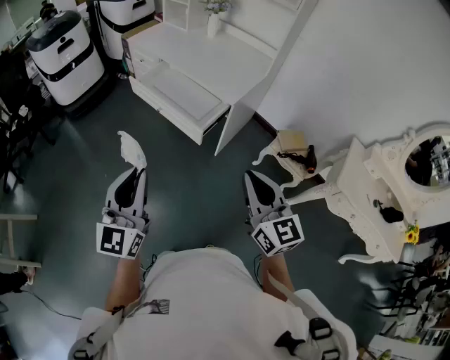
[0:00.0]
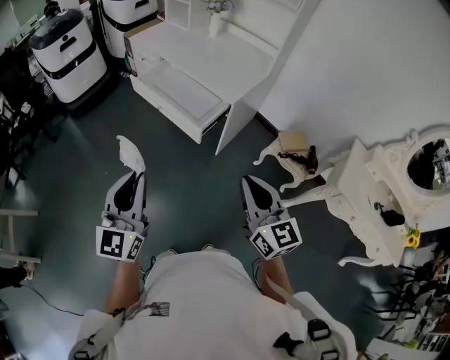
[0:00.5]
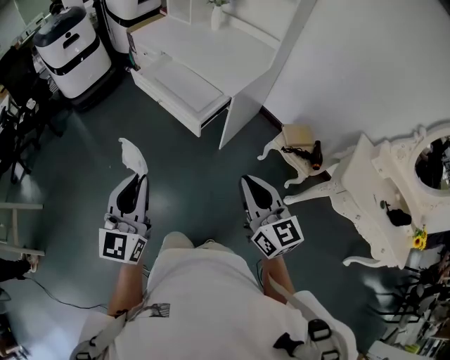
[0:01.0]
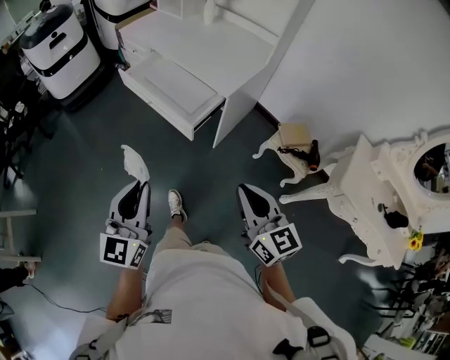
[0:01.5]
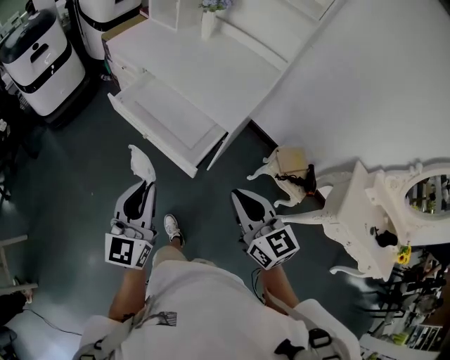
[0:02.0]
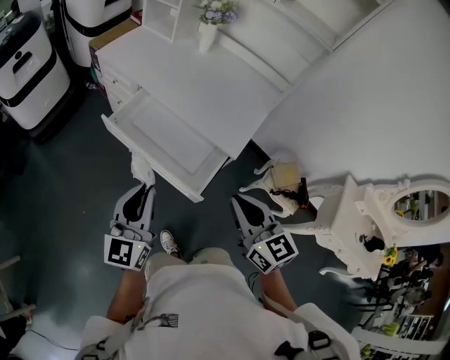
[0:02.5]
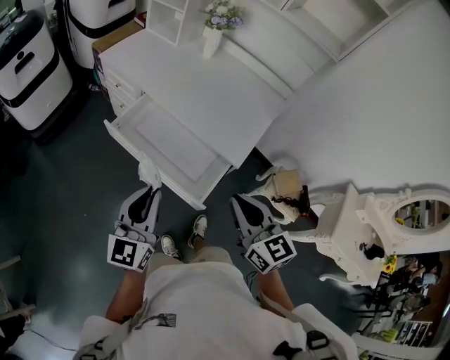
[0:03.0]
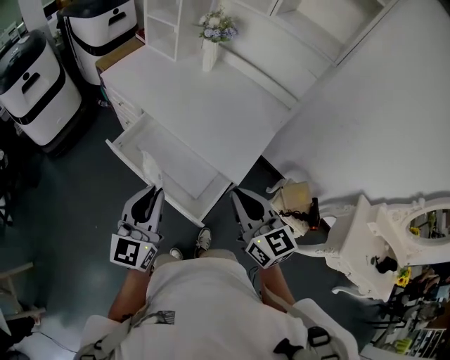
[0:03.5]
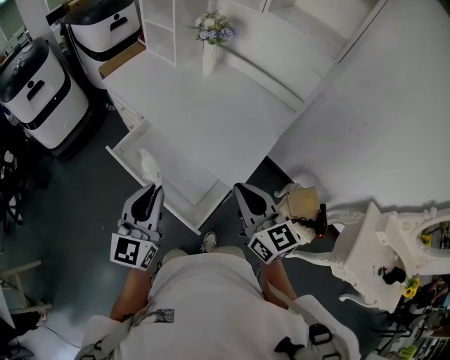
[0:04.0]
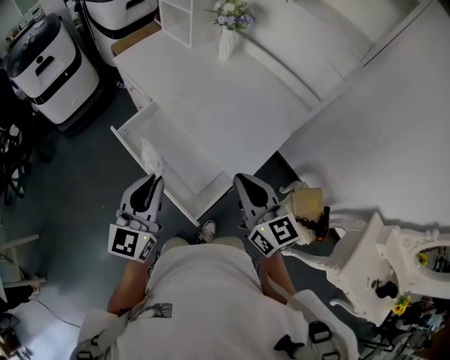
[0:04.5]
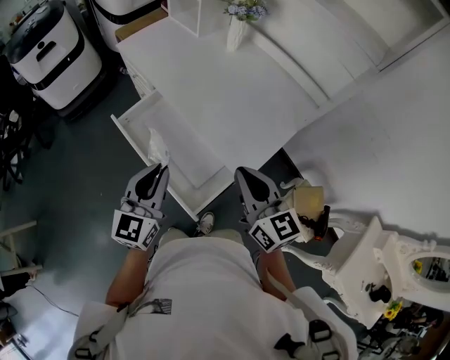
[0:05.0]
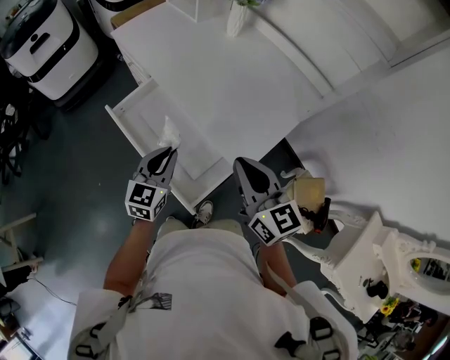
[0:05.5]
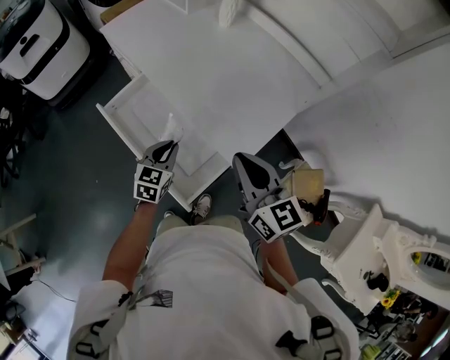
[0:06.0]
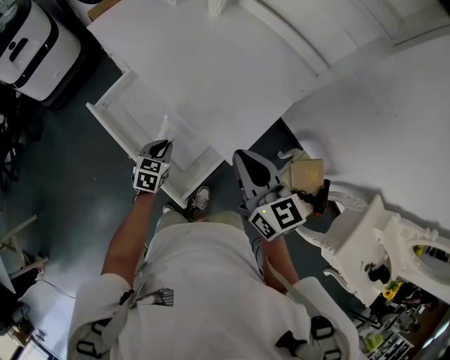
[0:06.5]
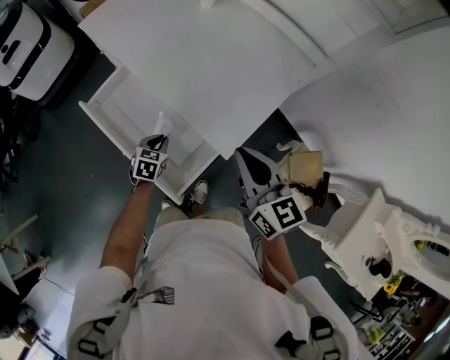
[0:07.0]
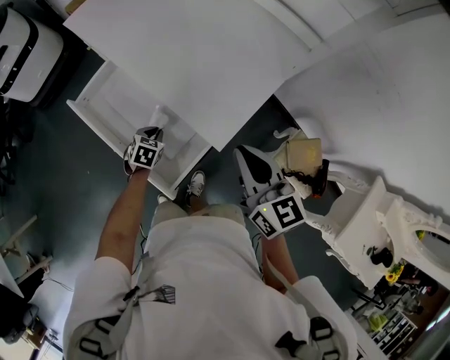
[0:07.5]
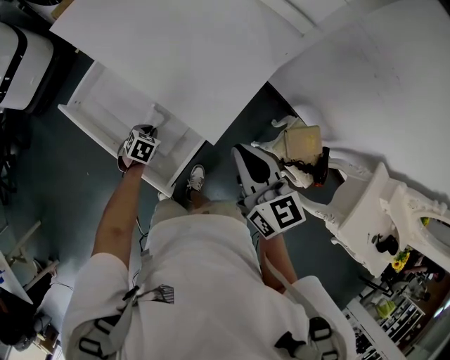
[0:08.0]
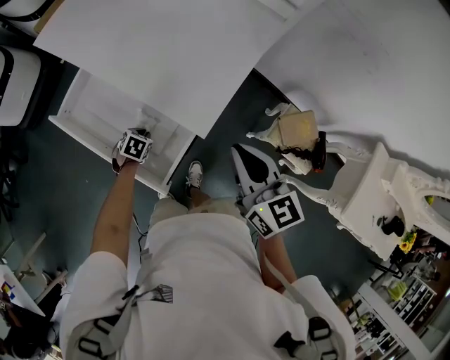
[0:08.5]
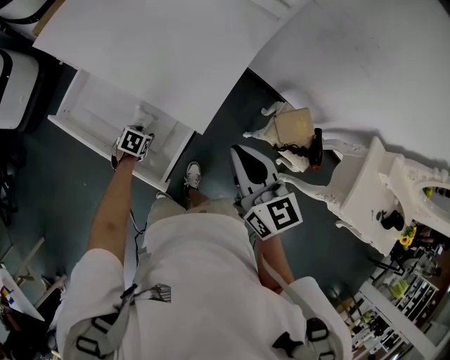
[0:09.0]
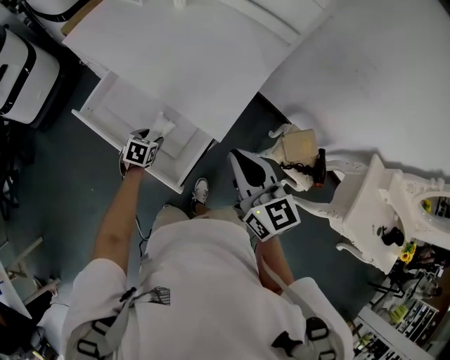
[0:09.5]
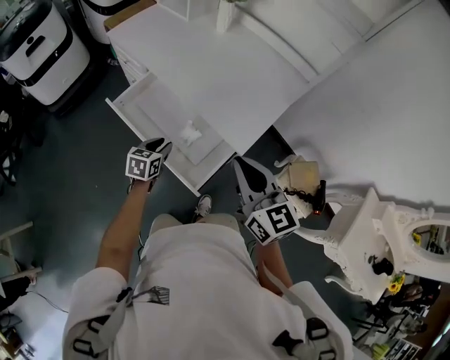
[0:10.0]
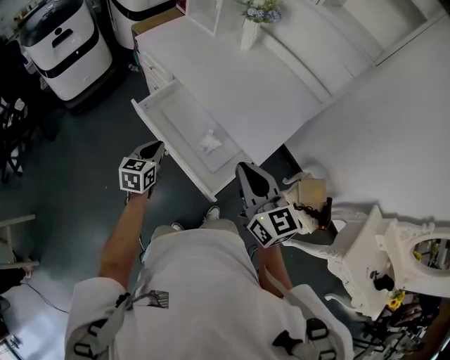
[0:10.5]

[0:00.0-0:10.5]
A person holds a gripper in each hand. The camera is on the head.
0:00.0 to 0:02.0: Both grippers move forward, roughly 20 cm.
0:02.0 to 0:04.0: Both grippers move forward, roughly 25 cm.
0:04.0 to 0:06.5: The right gripper travels forward and downward by about 10 cm, while the left gripper goes about 35 cm downward, and tilts its fingers about 50 degrees downward.
0:06.5 to 0:08.5: The left gripper shifts approximately 15 cm downward, and changes its angle by approximately 30 degrees. The right gripper moves to the right, some 10 cm.
0:08.5 to 0:10.5: The right gripper goes some 25 cm to the left, backward and upward, while the left gripper shifts roughly 30 cm upward and to the left, tips its fingers upward by approximately 50 degrees, and opens, then closes once more.

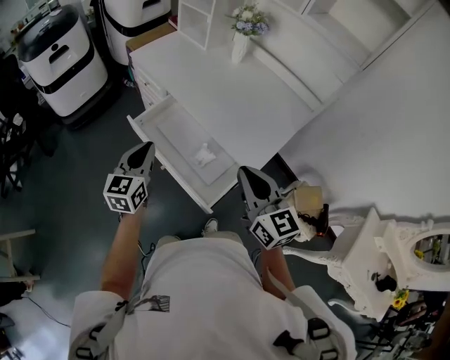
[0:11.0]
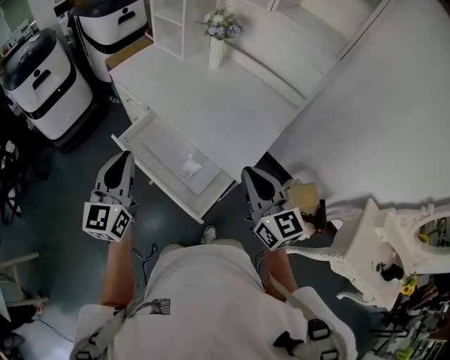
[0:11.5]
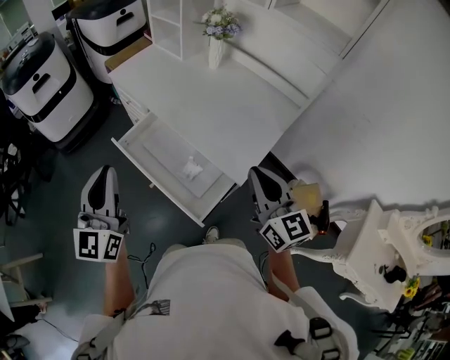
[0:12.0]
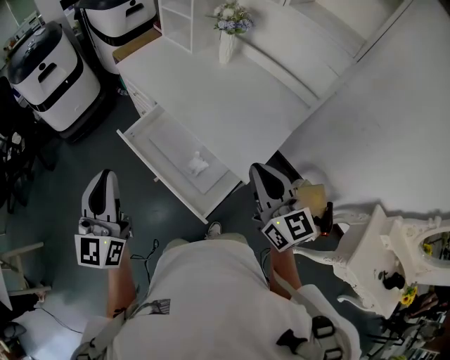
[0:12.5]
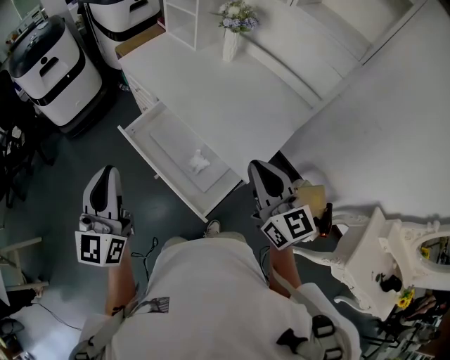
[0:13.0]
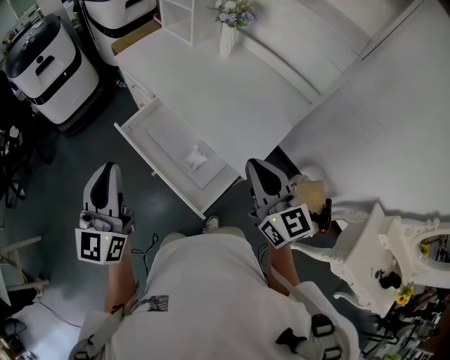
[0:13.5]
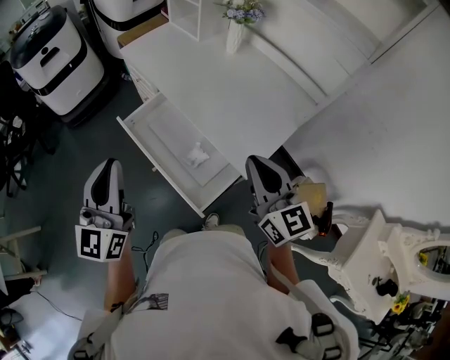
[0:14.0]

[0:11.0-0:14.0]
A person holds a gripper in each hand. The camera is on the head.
0:11.0 to 0:12.5: The right gripper heads to the right, covering approximately 10 cm. The left gripper goes about 15 cm upward, and rotates roughly 20 degrees.
0:12.5 to 0:14.0: The grippers stay close to where they were, moving slightly.

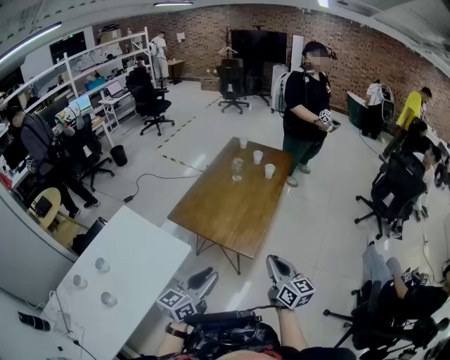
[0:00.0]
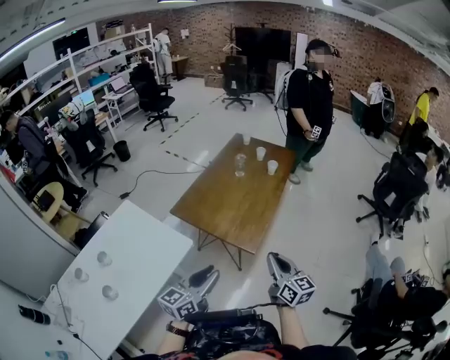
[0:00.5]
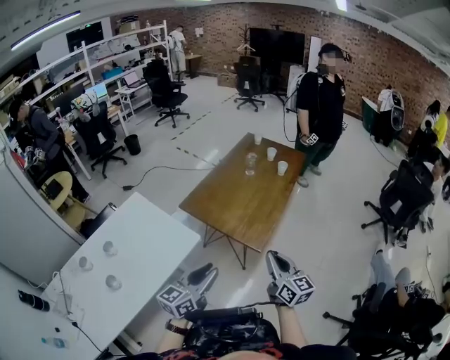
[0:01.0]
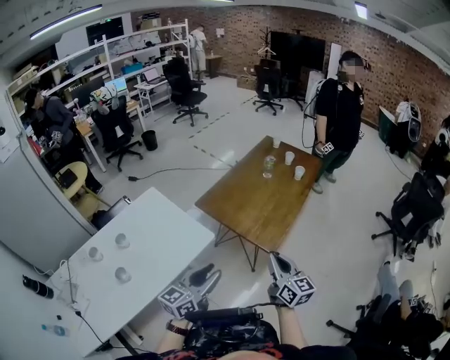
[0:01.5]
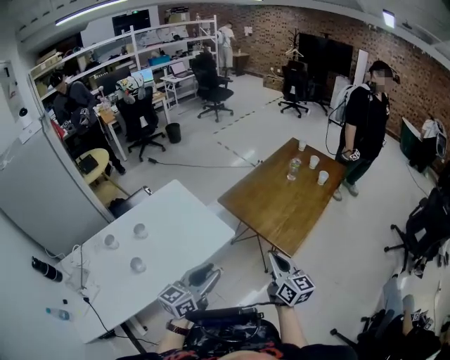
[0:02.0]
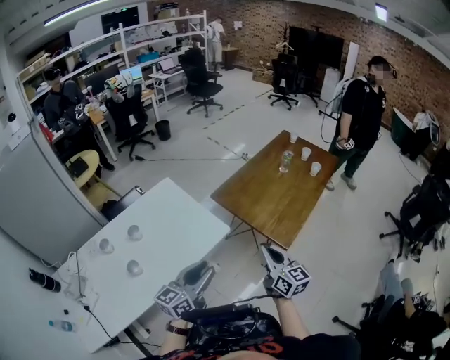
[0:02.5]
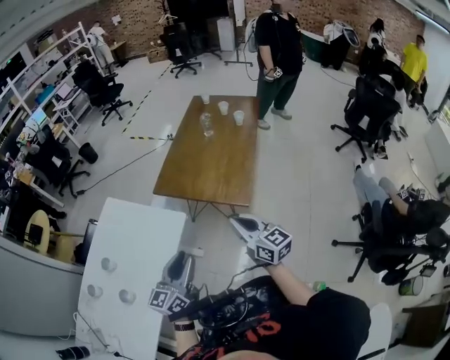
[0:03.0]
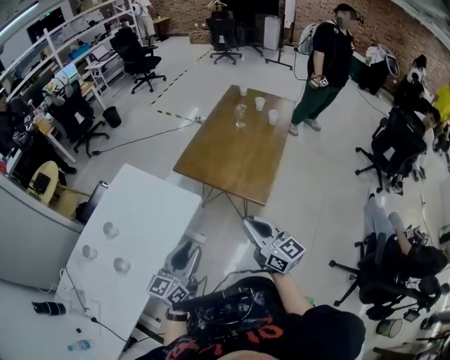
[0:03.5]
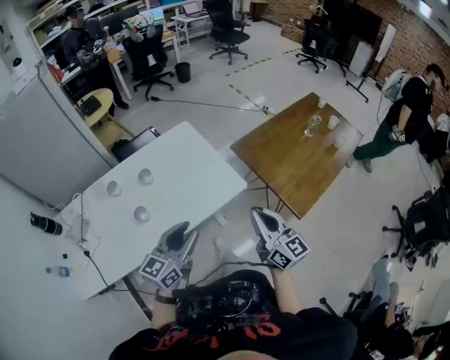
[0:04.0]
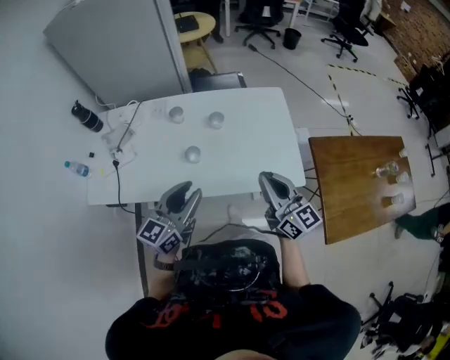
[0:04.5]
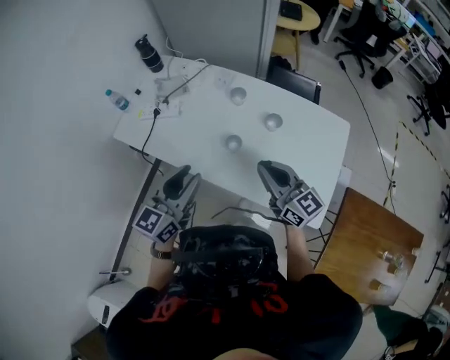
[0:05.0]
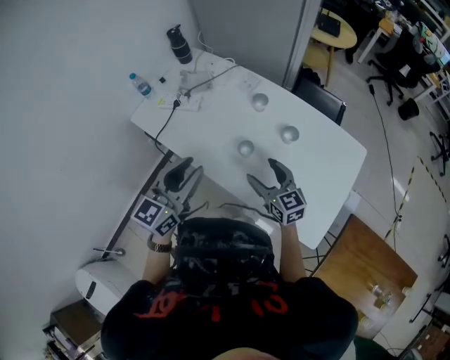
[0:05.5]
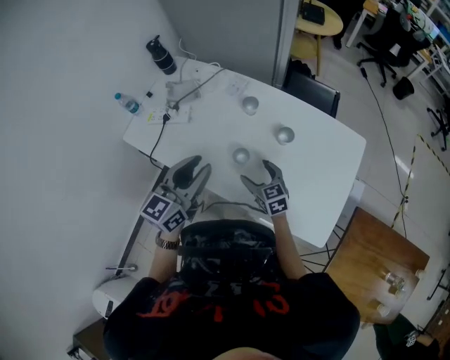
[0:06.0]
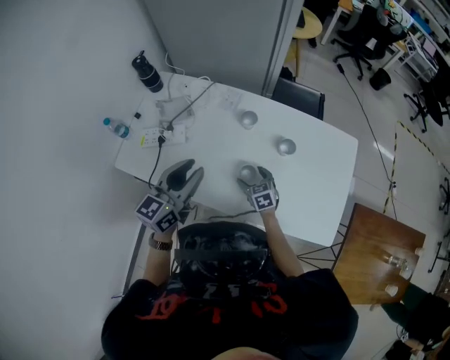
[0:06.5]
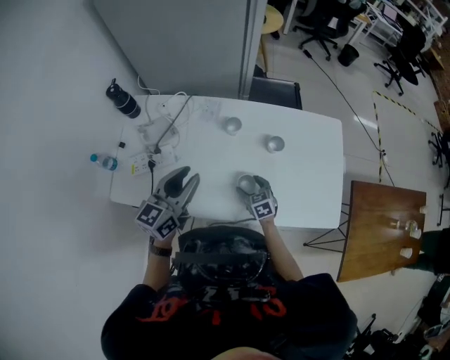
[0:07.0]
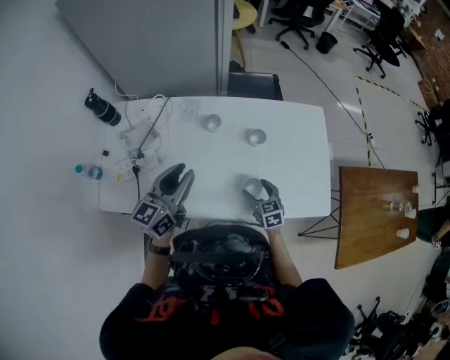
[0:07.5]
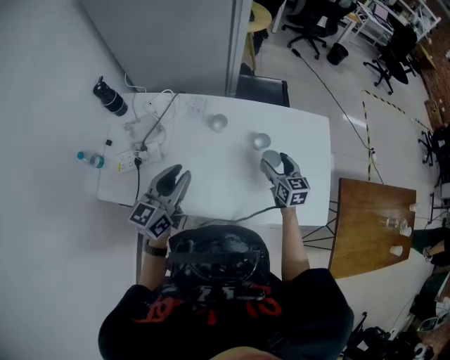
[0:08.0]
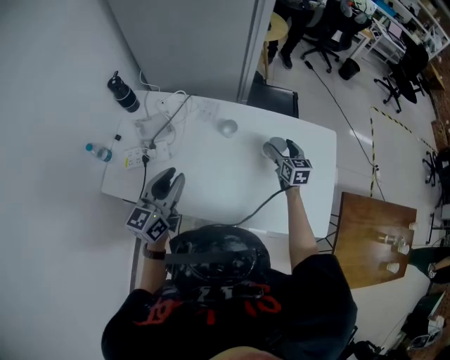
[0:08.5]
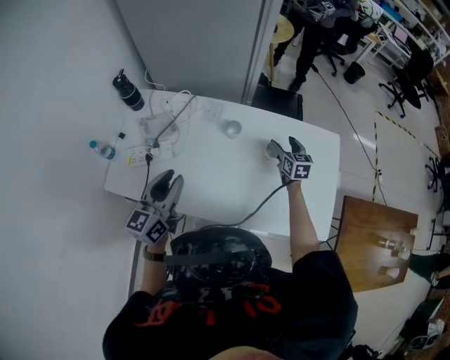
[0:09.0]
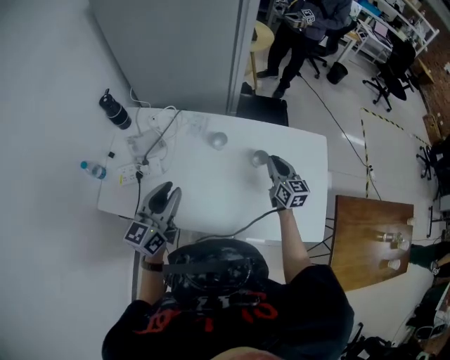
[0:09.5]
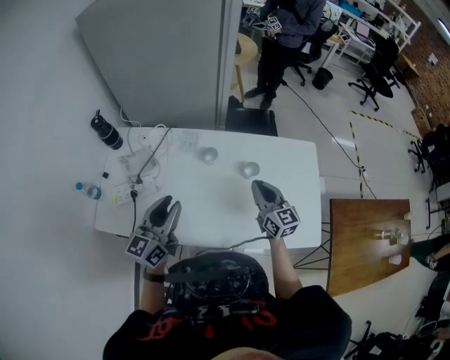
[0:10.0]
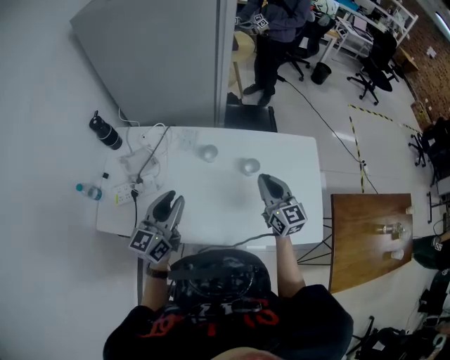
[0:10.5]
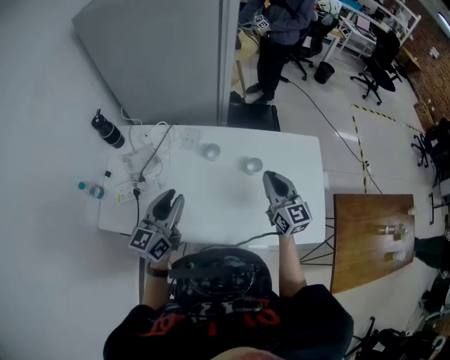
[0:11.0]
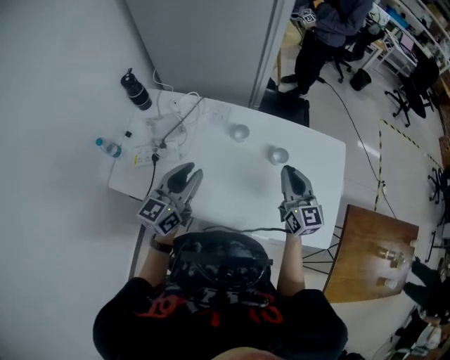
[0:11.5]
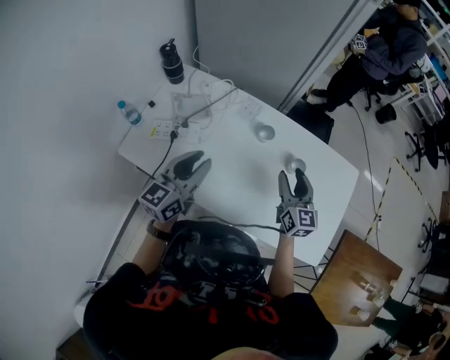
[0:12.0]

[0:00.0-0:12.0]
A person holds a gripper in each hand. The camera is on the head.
0:00.0 to 0:02.0: The left gripper shifts about 15 cm to the left and backward. The right gripper heads to the left, covering approximately 15 cm.
0:02.0 to 0:04.0: The right gripper changes place by approximately 10 cm. The left gripper changes place by some 10 cm.
0:04.0 to 0:06.0: The right gripper ends up roughly 50 cm from where it was, tips its fingers downward by approximately 30 degrees, and opens. Meanwhile the left gripper shifts by roughly 30 cm, and changes its angle by some 60 degrees.
0:06.0 to 0:08.0: The right gripper moves about 10 cm downward and comes back, and changes its angle by roughly 30 degrees; the left gripper shifts by approximately 15 cm.
0:08.0 to 0:10.0: The right gripper travels upward by roughly 10 cm, goes forward and returns, roughly 10 cm each way, and closes up.
0:10.0 to 0:12.0: The two grippers go about 5 cm to the left. The right gripper opens.

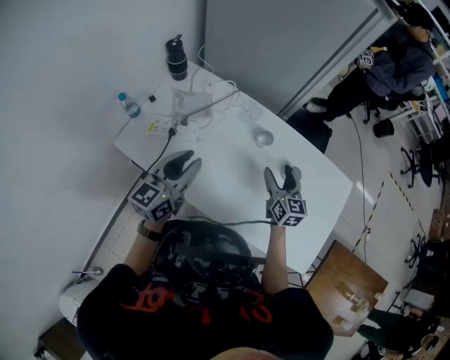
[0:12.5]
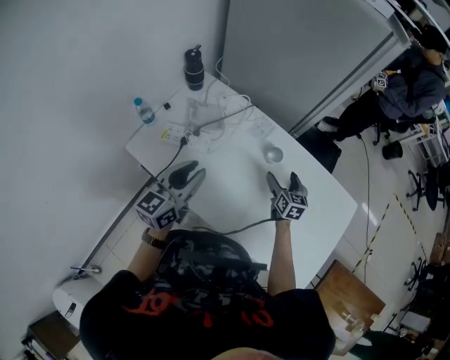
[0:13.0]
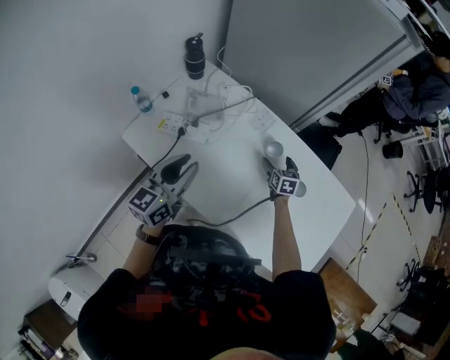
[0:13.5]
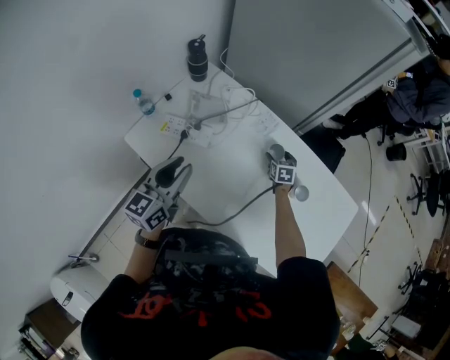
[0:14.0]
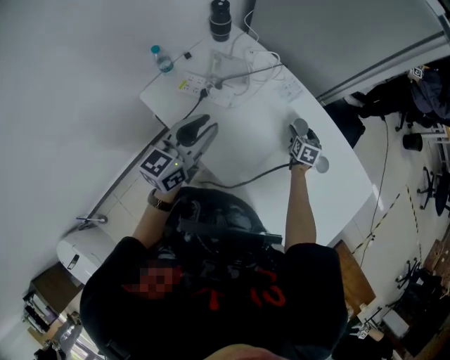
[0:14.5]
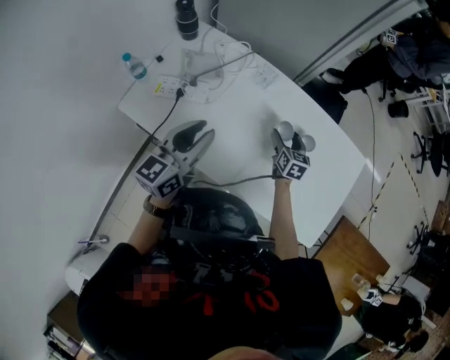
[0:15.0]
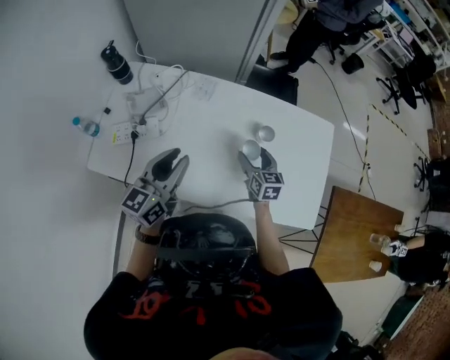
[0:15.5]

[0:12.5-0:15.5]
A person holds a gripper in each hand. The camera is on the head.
0:12.5 to 0:14.0: The right gripper travels downward and forward by roughly 25 cm, and tips its fingers downward by roughly 30 degrees. Meanwhile the left gripper is displaced to the left by some 5 cm.
0:14.0 to 0:15.5: The right gripper goes roughly 25 cm backward and upward, and rotates approximately 30 degrees. Meanwhile the left gripper goes some 15 cm to the right, and swivels some 30 degrees.
